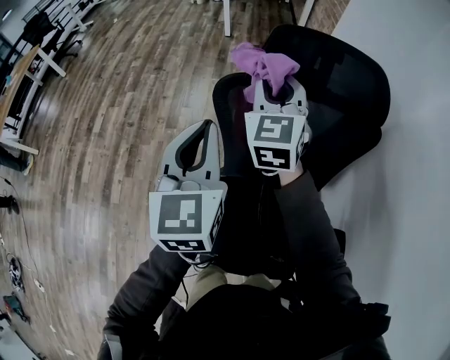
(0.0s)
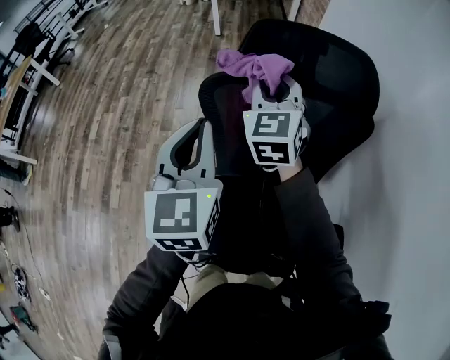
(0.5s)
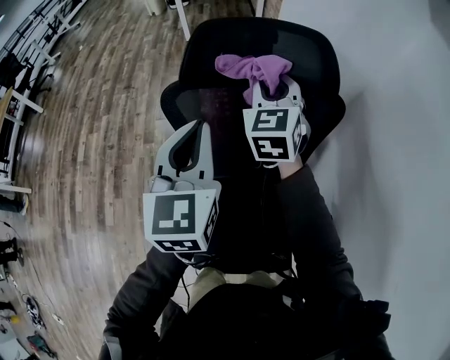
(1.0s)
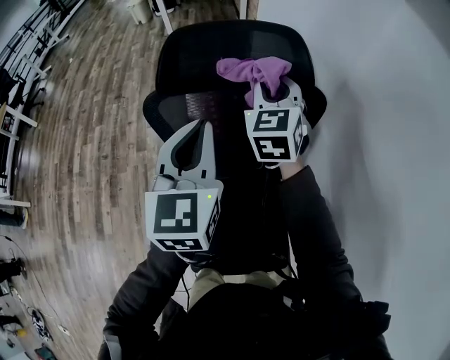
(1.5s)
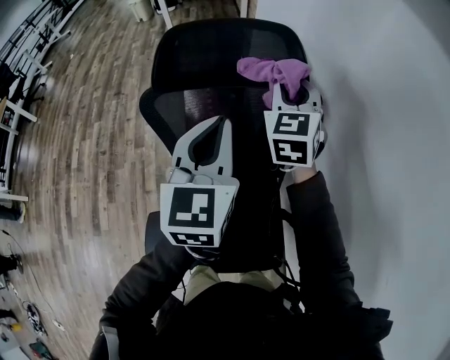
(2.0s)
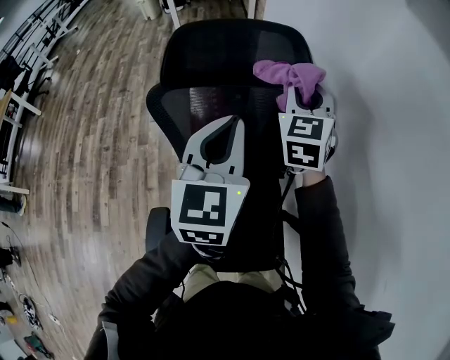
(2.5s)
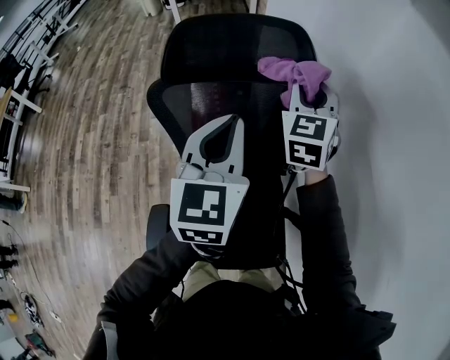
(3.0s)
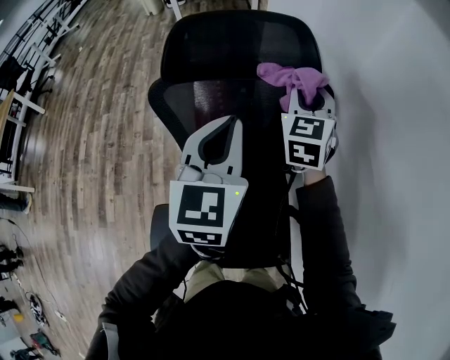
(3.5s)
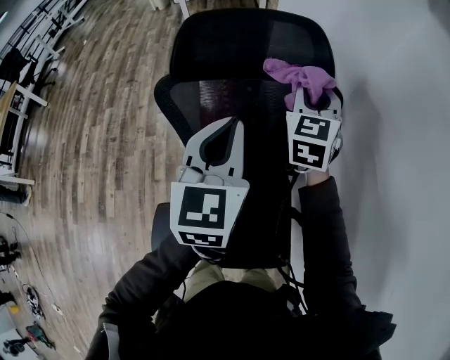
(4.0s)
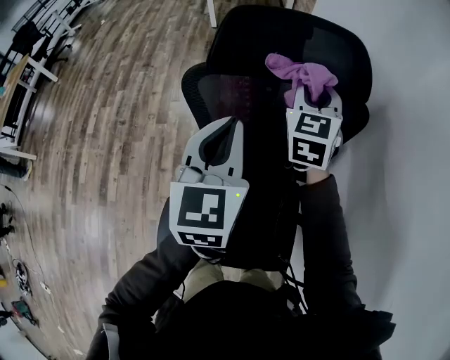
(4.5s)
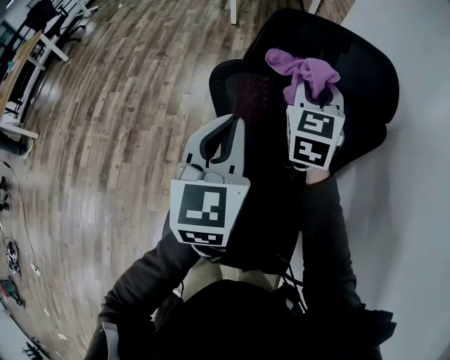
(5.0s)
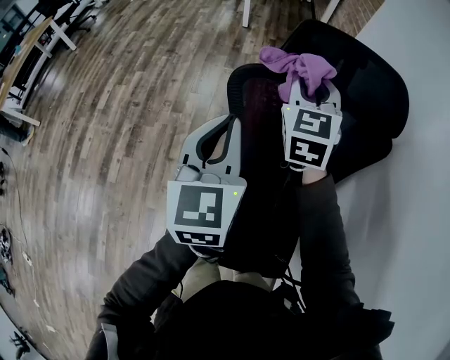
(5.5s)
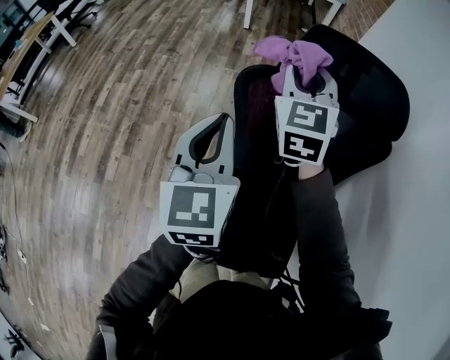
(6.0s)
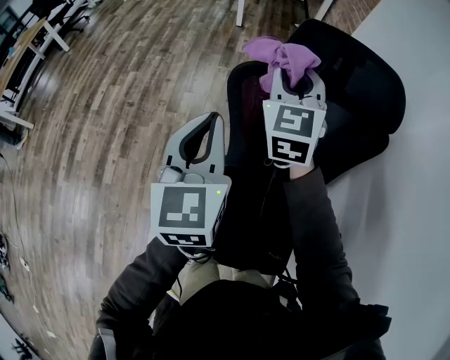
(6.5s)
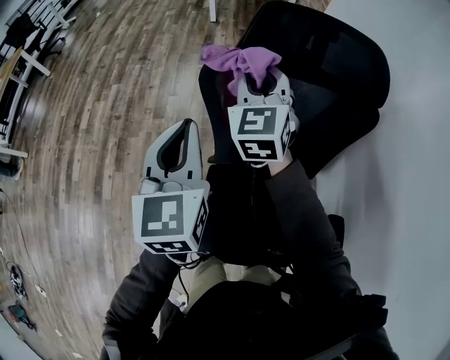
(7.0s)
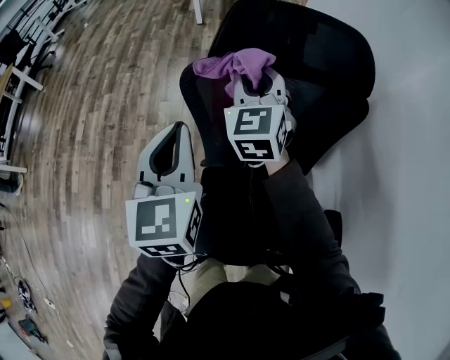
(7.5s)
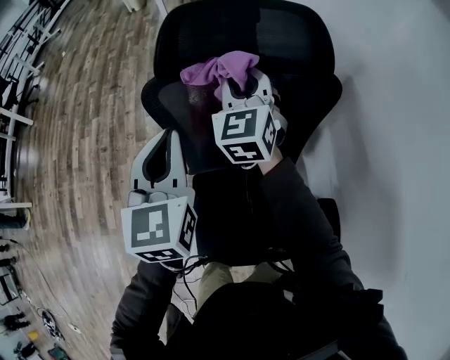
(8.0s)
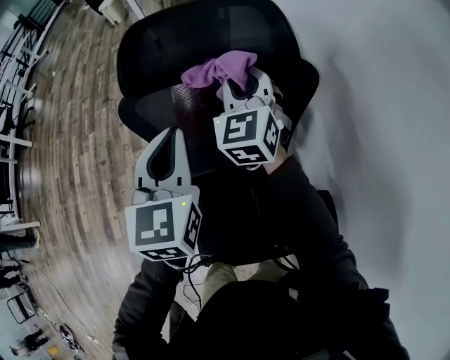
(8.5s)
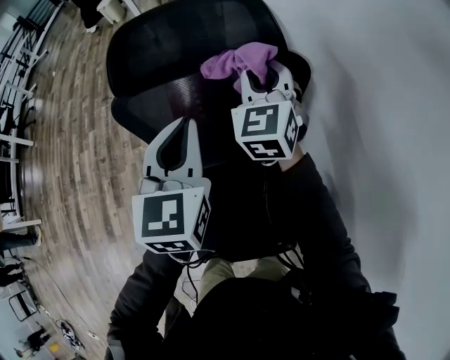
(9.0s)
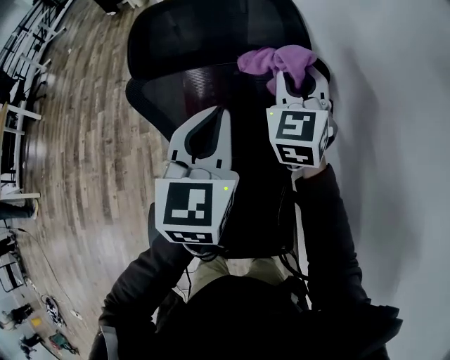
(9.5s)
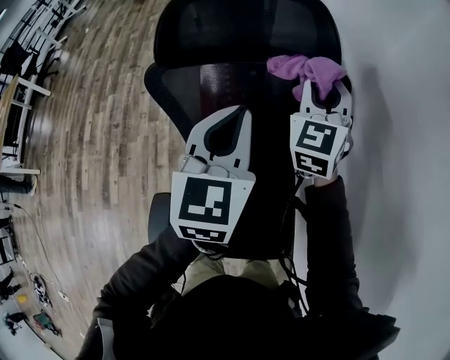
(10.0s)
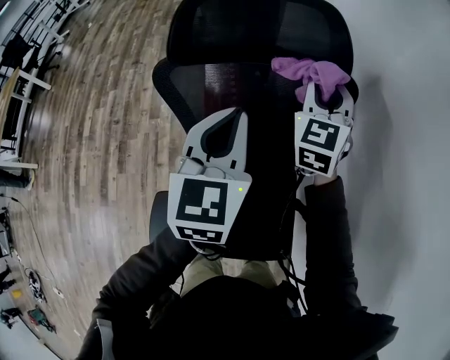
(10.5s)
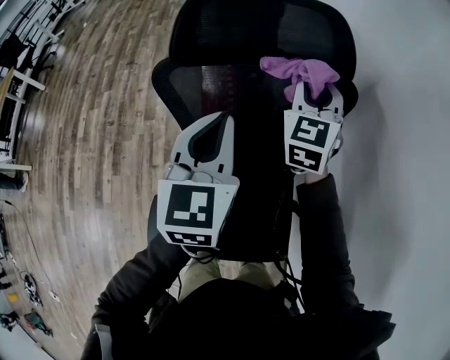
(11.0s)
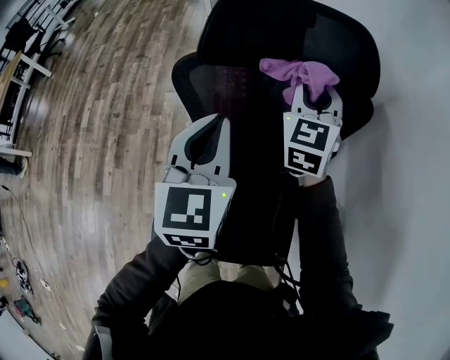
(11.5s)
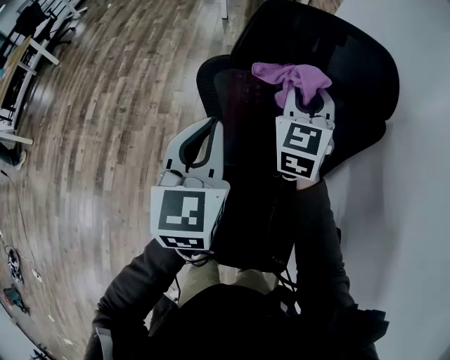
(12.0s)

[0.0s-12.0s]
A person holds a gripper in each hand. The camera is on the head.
0.0s to 2.0s: The two grippers go about 25 cm to the right.
2.0s to 4.0s: The grippers make only small movements.
4.0s to 6.0s: The grippers both shift to the left by some 25 cm. The right gripper rotates some 20 degrees.
6.0s to 8.0s: The left gripper shifts some 10 cm to the right, while the right gripper goes about 15 cm to the right and downward.
8.0s to 10.0s: The grippers both shift to the right by about 15 cm.
10.0s to 12.0s: The grippers both shift to the left by roughly 20 cm.

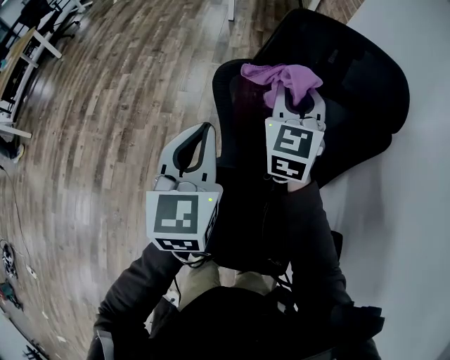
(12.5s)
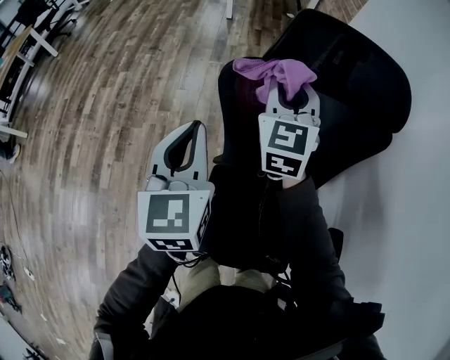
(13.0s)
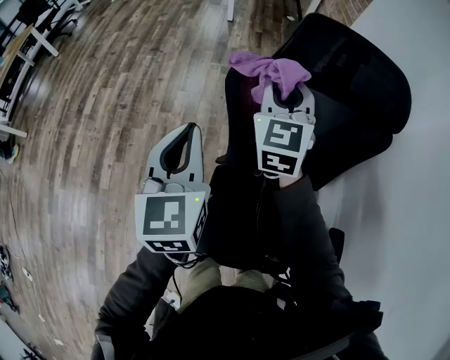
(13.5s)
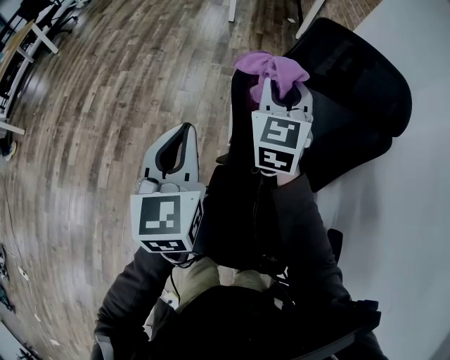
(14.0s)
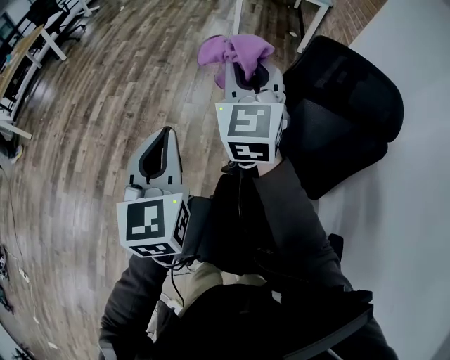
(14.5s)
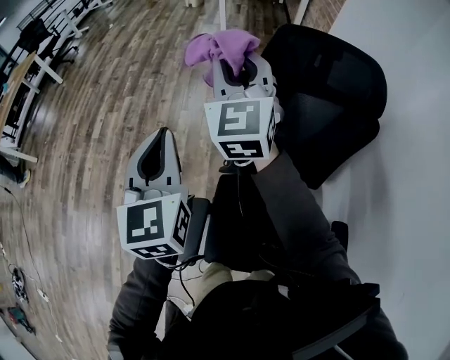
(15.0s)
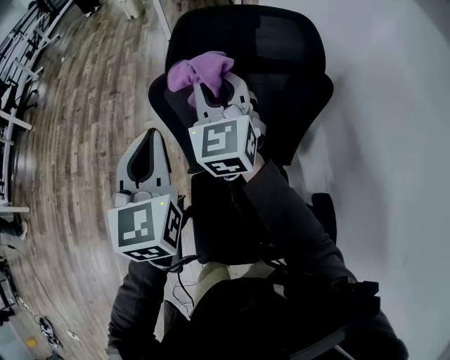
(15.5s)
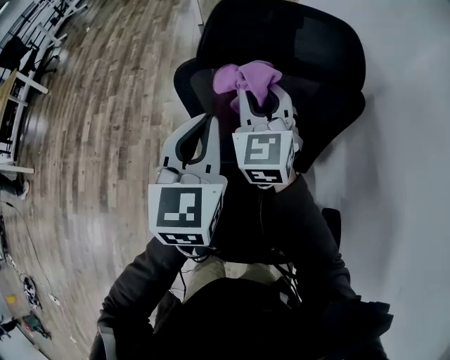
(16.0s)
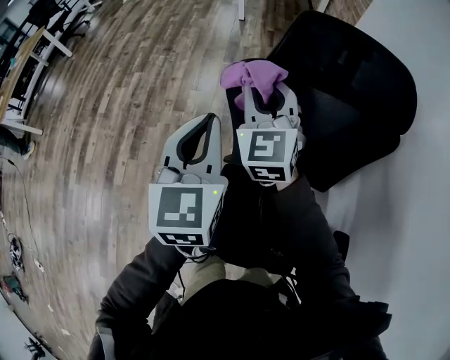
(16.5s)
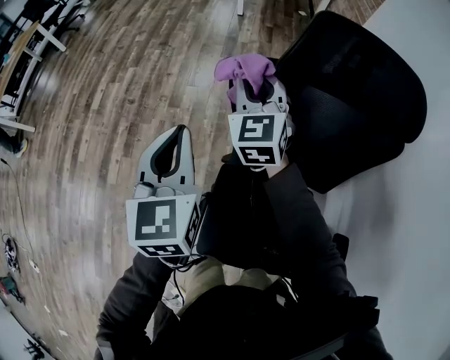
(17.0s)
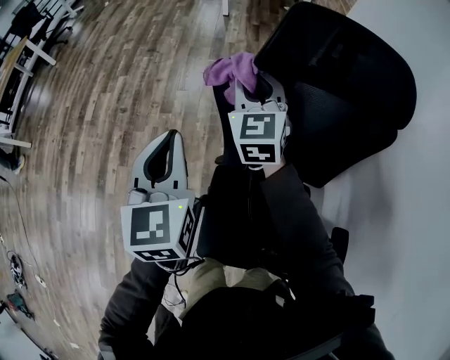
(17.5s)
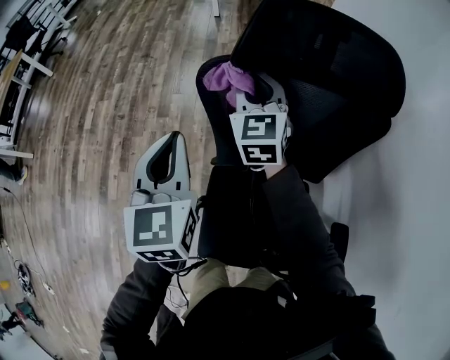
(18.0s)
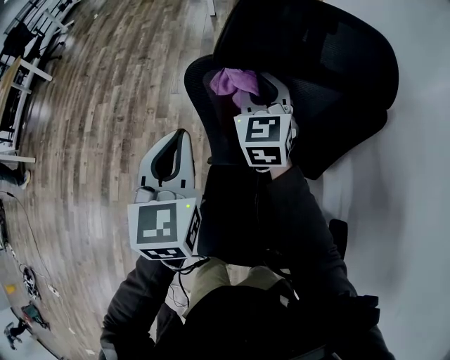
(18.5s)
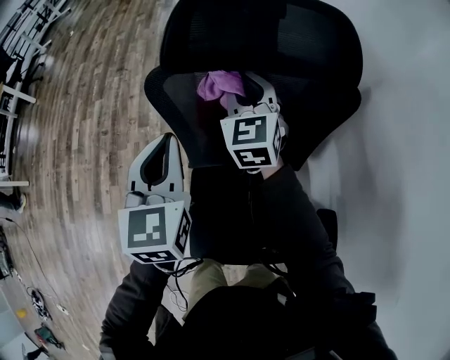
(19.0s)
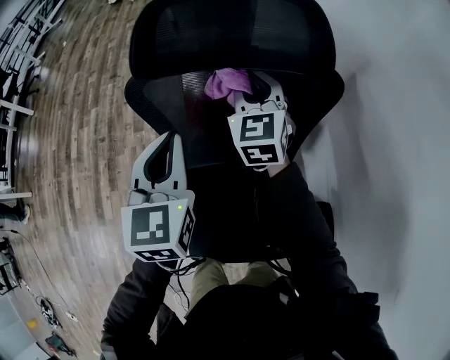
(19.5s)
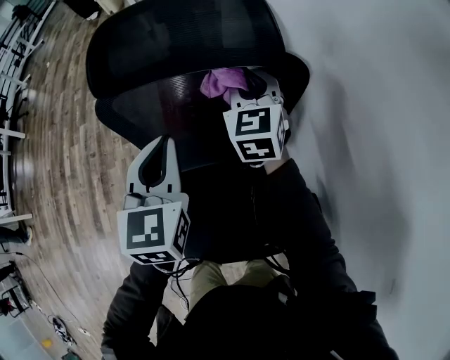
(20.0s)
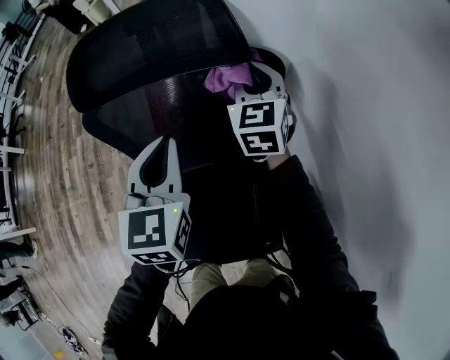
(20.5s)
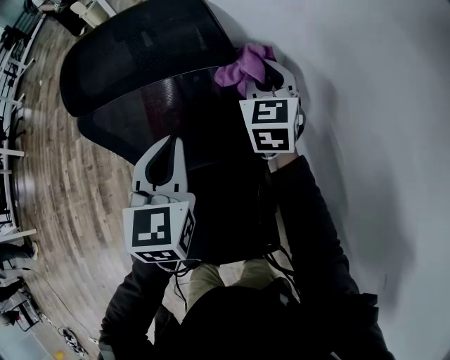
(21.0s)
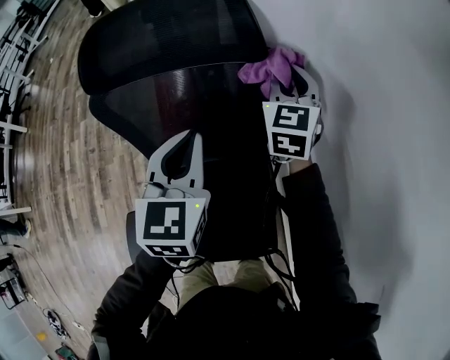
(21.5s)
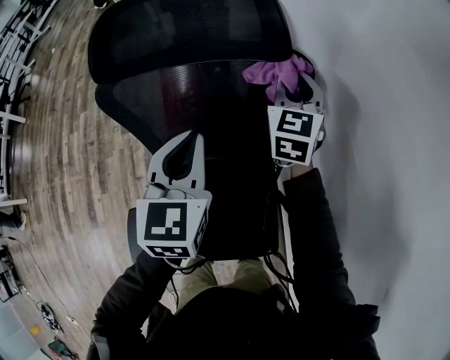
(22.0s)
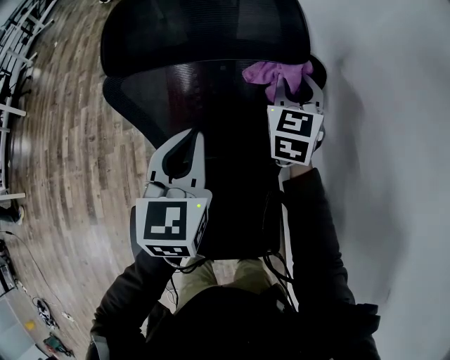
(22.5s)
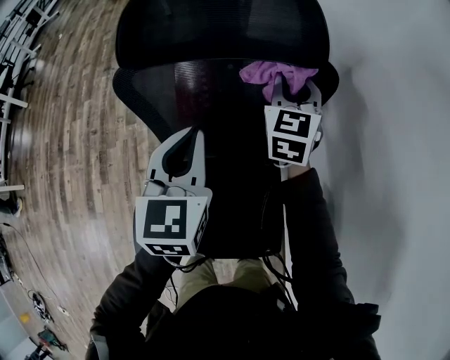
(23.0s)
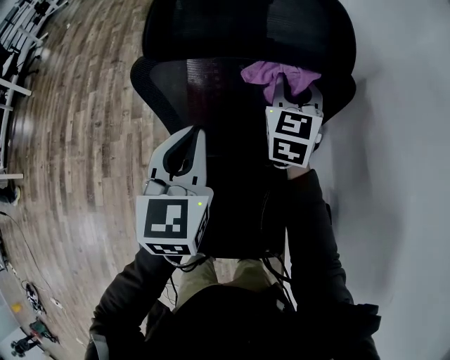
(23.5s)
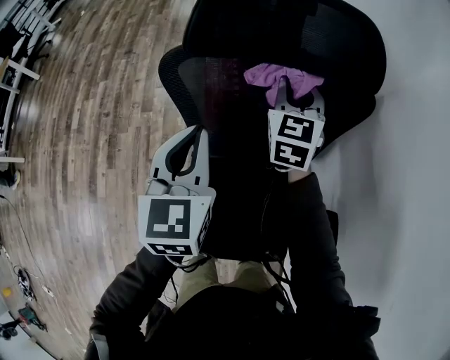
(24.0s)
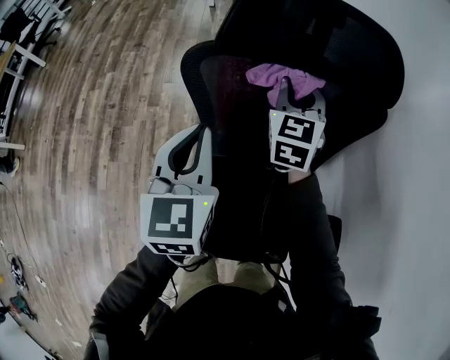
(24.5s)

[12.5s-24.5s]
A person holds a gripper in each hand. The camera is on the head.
12.5s to 14.5s: The left gripper goes roughly 15 cm to the left, while the right gripper goes some 20 cm to the left and upward.
14.5s to 16.5s: The left gripper heads to the right, covering roughly 15 cm, while the right gripper moves to the right and downward, roughly 15 cm.
16.5s to 18.5s: The right gripper is displaced to the right and downward by some 10 cm, while the left gripper goes to the left and returns, approximately 5 cm each way.
18.5s to 20.5s: The grippers both shift to the right by approximately 25 cm.
20.5s to 22.5s: The grippers make only small movements.
22.5s to 24.5s: The grippers both shift to the left by approximately 20 cm.

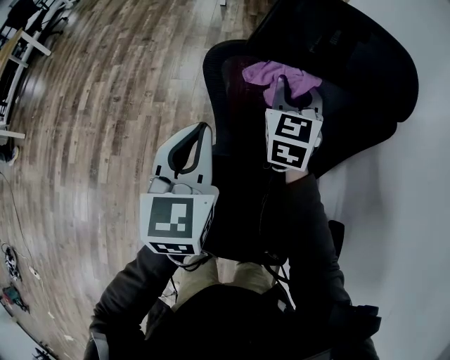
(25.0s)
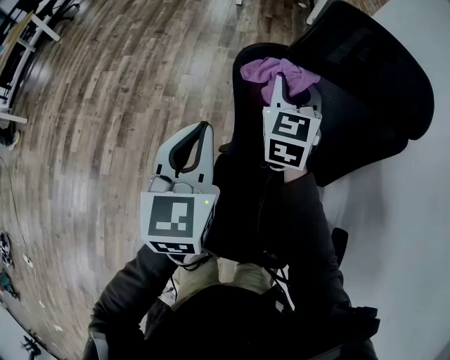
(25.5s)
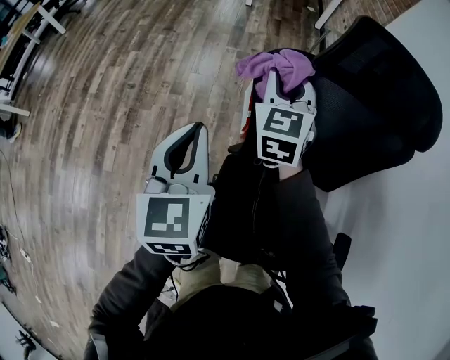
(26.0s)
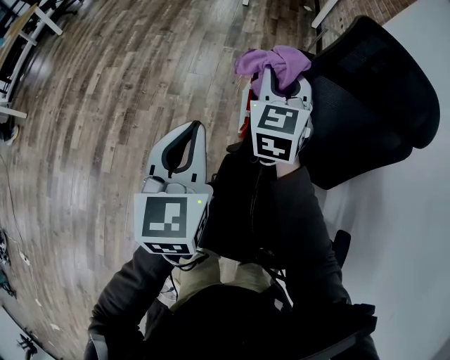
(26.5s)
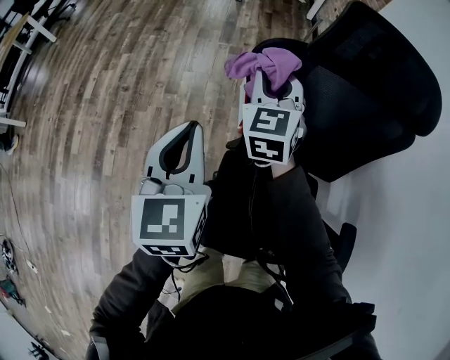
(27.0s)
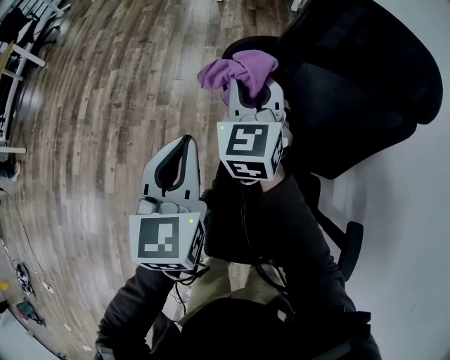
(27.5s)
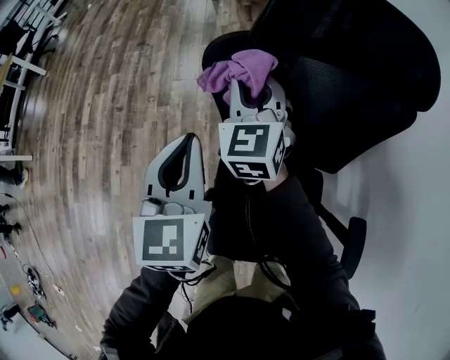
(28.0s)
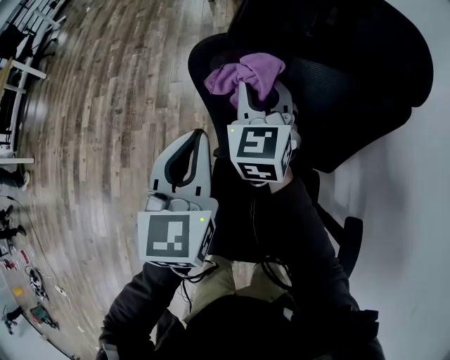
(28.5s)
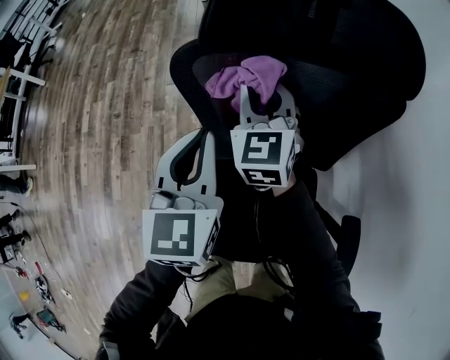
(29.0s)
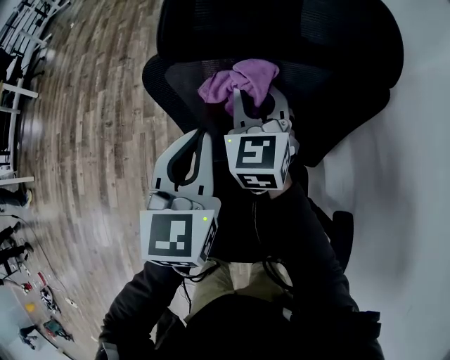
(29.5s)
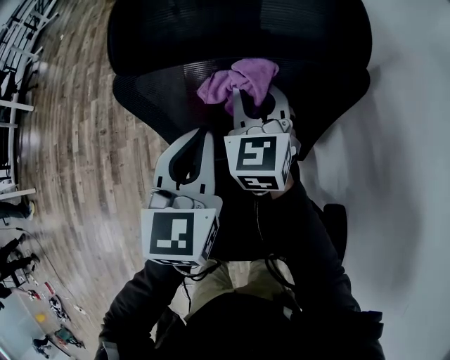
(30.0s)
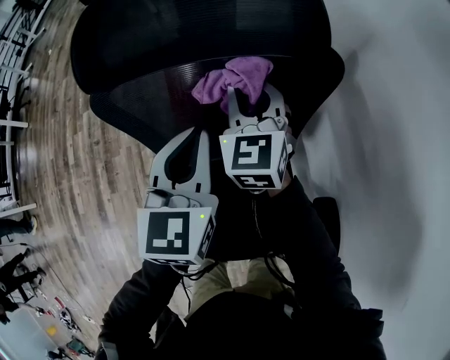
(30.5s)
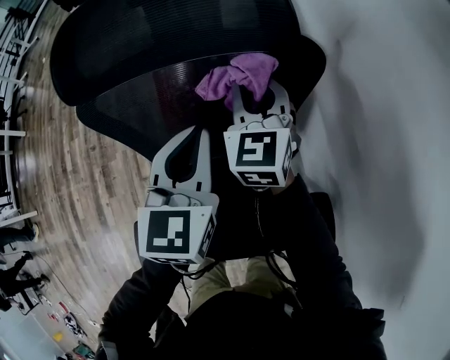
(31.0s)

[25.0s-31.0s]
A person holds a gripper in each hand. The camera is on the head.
25.0s to 27.0s: The grippers both shift to the left by approximately 15 cm.
27.0s to 29.0s: The grippers both shift to the right by approximately 15 cm.
29.0s to 31.0s: The two grippers go some 20 cm to the right.
